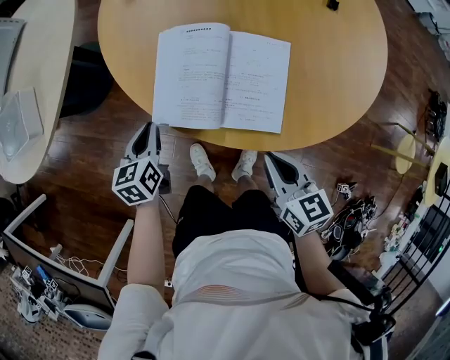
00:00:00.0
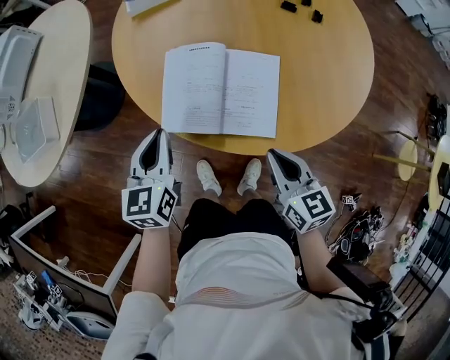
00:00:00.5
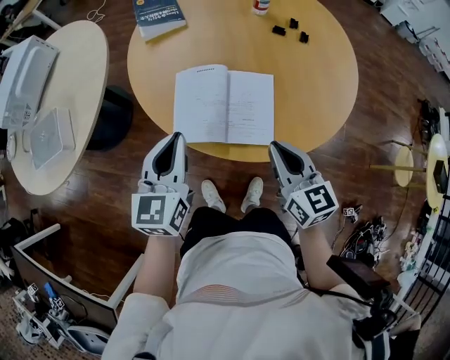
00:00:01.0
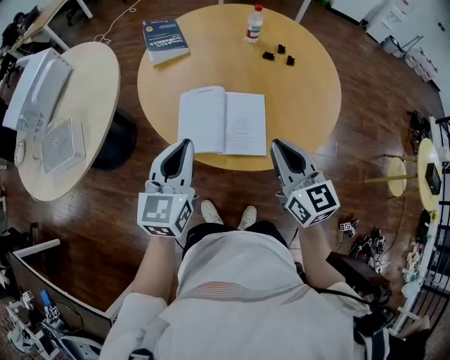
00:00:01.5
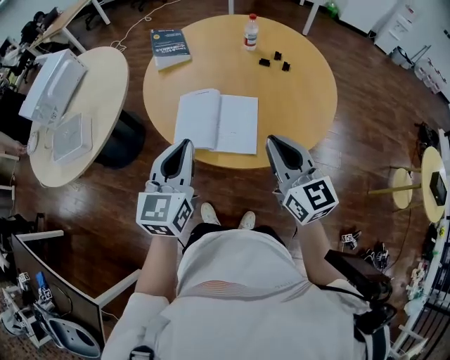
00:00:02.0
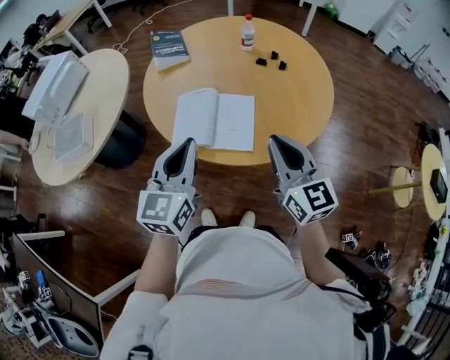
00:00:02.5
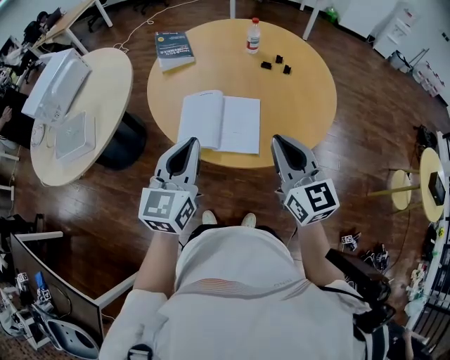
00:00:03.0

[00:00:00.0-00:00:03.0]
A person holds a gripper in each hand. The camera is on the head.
00:00:00.0 to 00:00:01.5: Both grippers move upward, approximately 25 cm. The right gripper turns by roughly 30 degrees. Meanwhile the left gripper turns by approximately 40 degrees.
00:00:01.5 to 00:00:03.0: The right gripper goes some 10 cm upward and backward, while the left gripper goes some 10 cm backward and to the right.

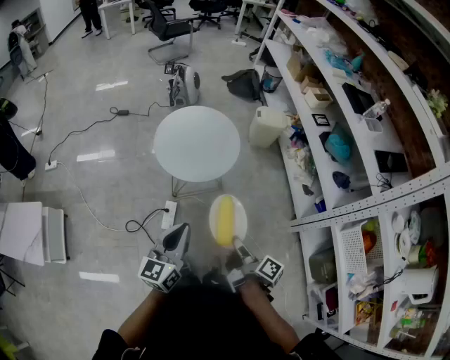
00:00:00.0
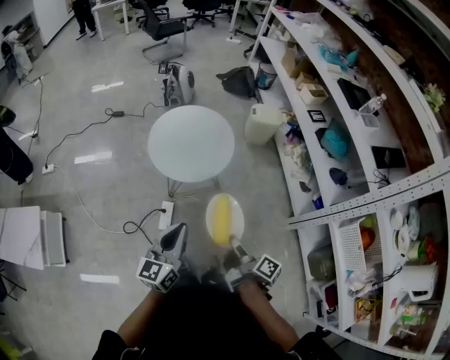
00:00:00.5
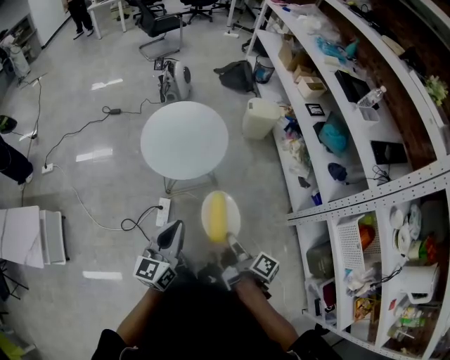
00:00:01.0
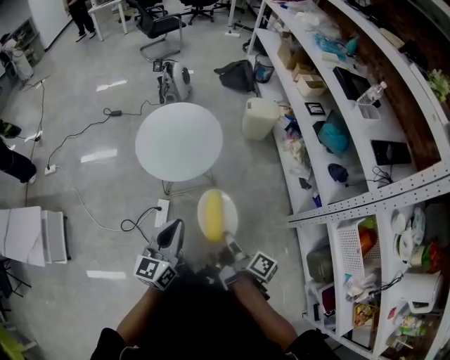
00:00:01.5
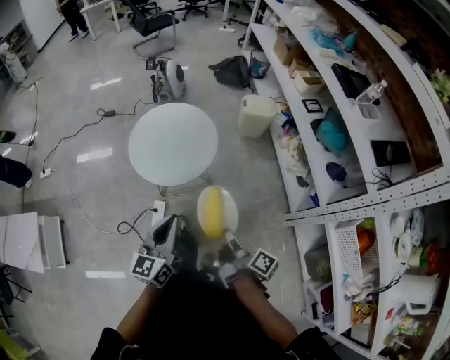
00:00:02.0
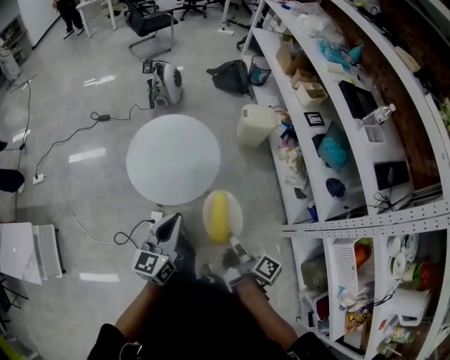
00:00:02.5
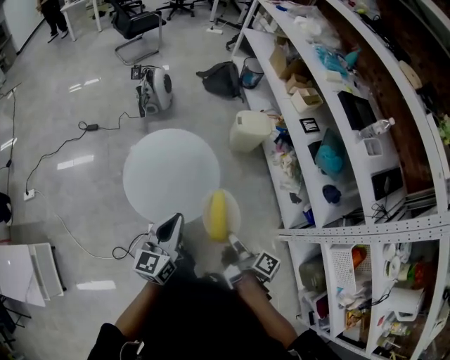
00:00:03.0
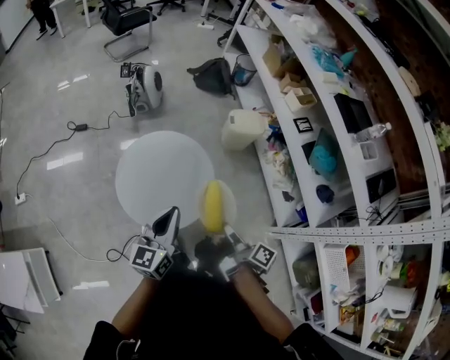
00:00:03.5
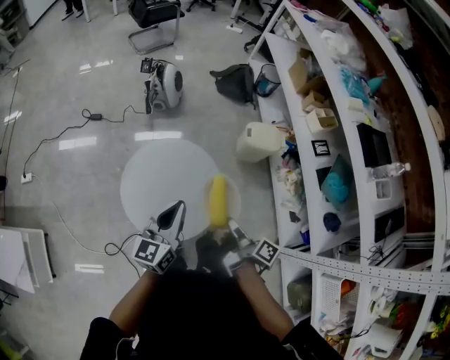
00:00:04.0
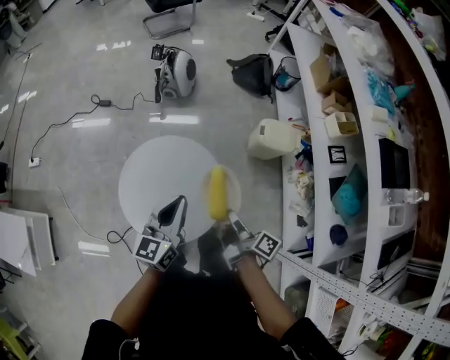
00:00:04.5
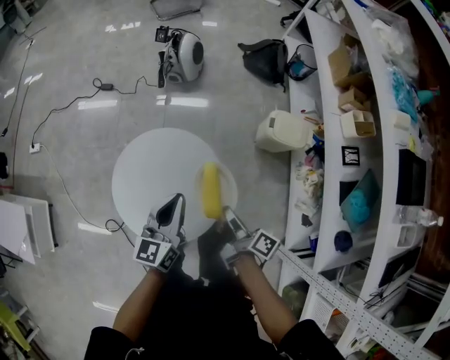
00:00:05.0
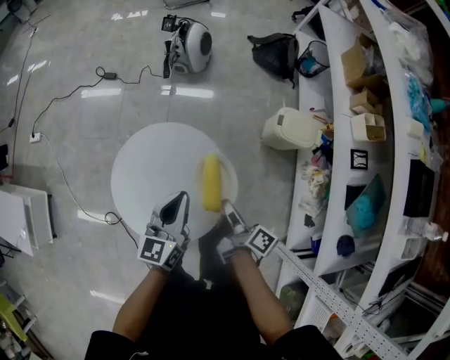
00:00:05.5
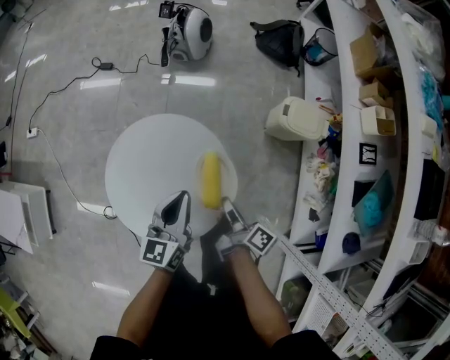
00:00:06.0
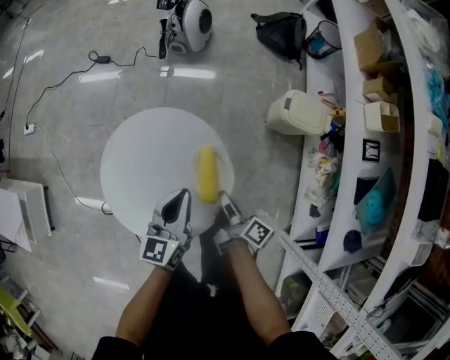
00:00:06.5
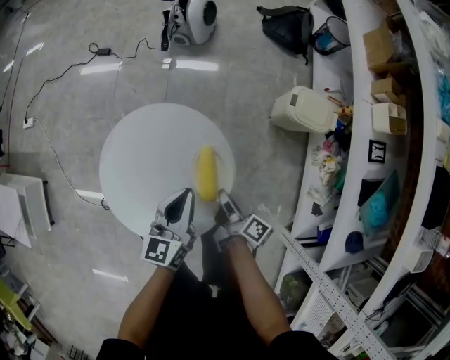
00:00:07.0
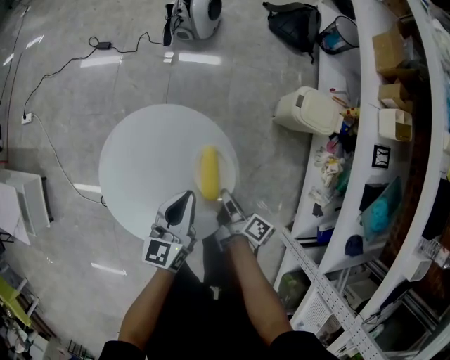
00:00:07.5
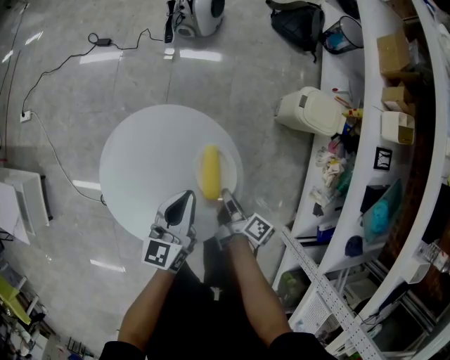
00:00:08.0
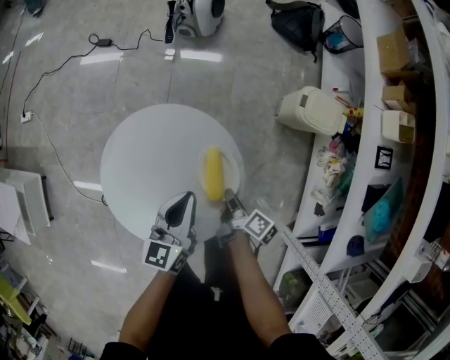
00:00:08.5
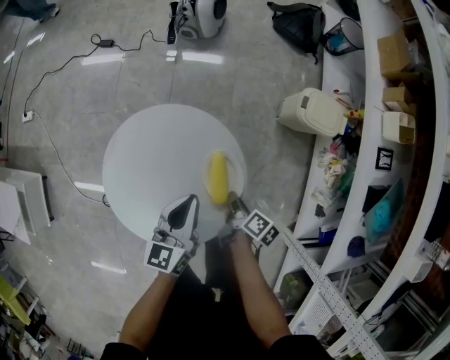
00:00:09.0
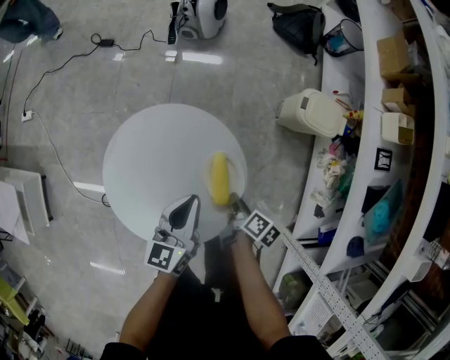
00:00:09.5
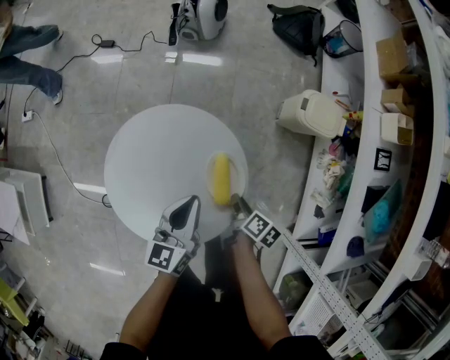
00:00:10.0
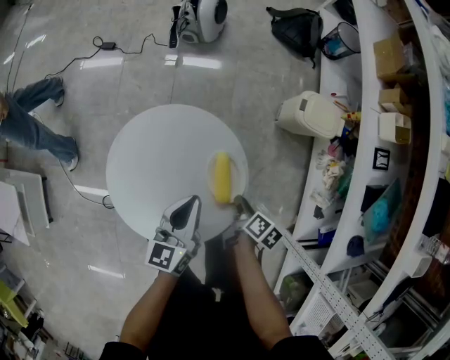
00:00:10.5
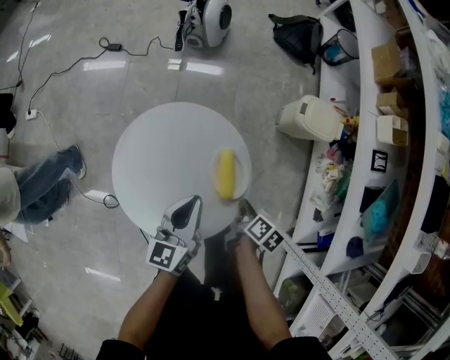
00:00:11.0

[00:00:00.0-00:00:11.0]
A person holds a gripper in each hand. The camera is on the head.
00:00:00.0 to 00:00:02.0: The left gripper ends up some 15 cm from where it was.
00:00:02.0 to 00:00:03.5: The left gripper shifts by approximately 25 cm.
00:00:03.5 to 00:00:05.5: The left gripper moves about 25 cm, and swivels about 20 degrees.
00:00:05.5 to 00:00:07.5: The left gripper is displaced downward by some 10 cm.

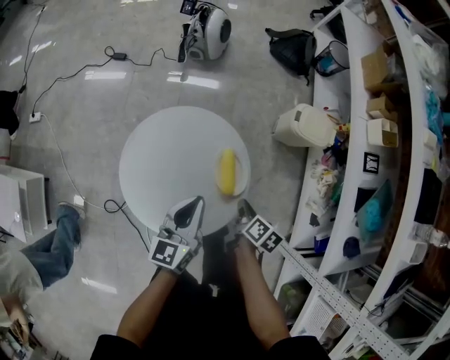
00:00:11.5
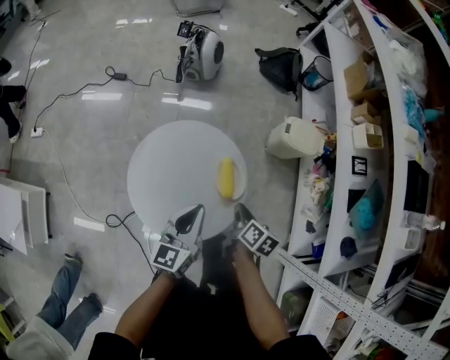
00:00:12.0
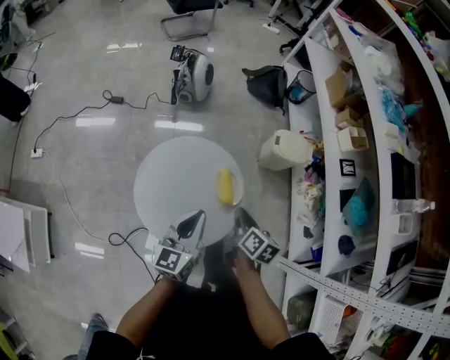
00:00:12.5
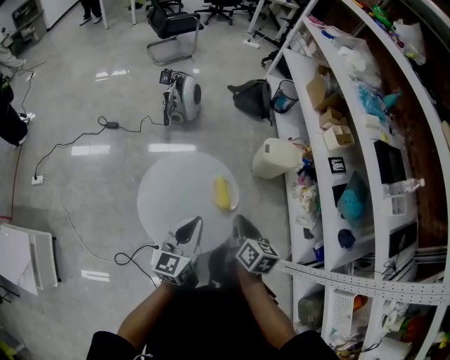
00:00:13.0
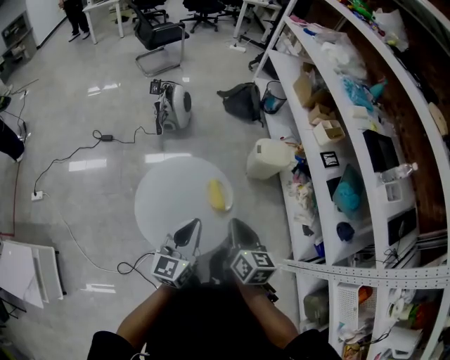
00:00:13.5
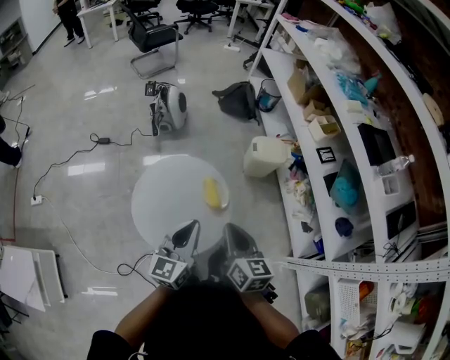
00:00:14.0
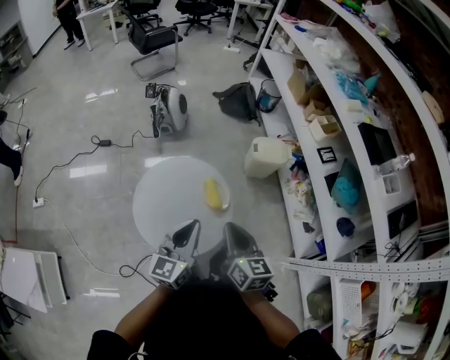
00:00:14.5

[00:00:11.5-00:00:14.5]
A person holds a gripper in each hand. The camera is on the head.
00:00:11.5 to 00:00:13.0: The left gripper travels upward by some 10 cm.
00:00:13.0 to 00:00:14.5: The left gripper changes place by some 5 cm.

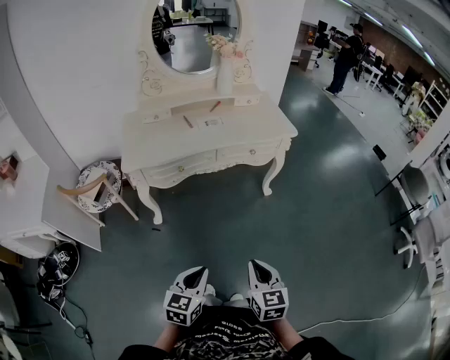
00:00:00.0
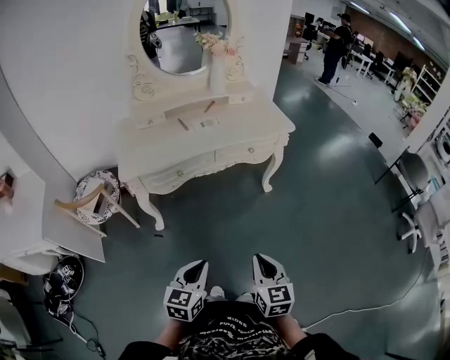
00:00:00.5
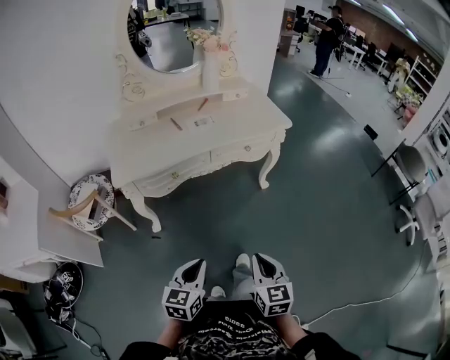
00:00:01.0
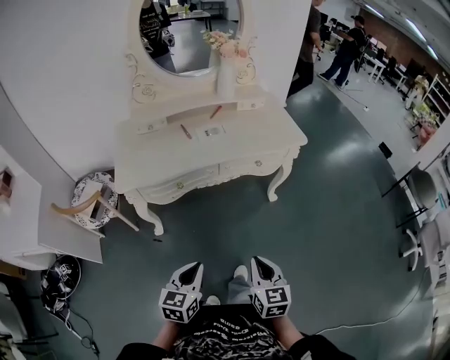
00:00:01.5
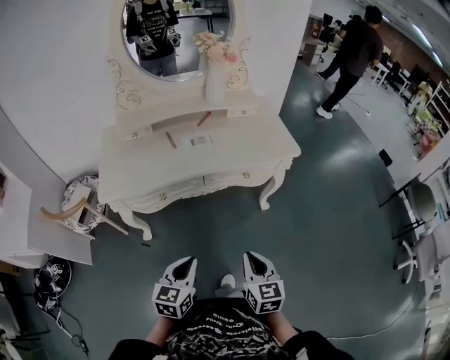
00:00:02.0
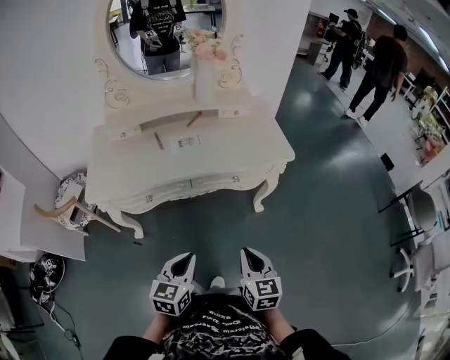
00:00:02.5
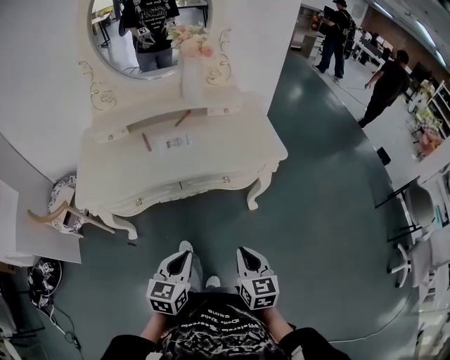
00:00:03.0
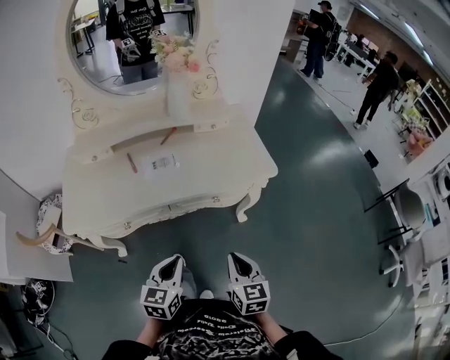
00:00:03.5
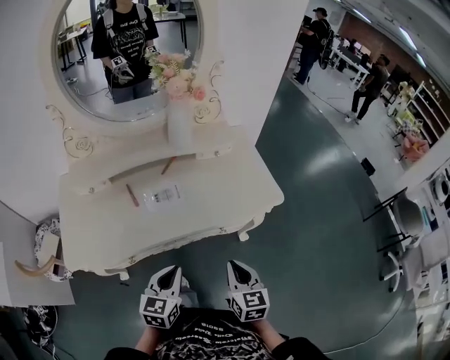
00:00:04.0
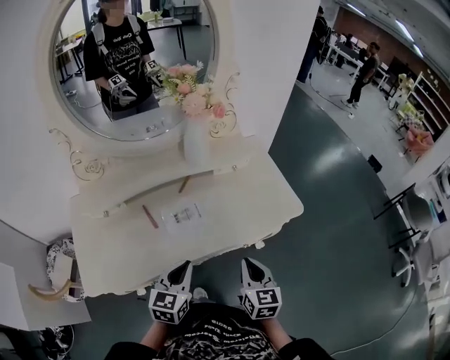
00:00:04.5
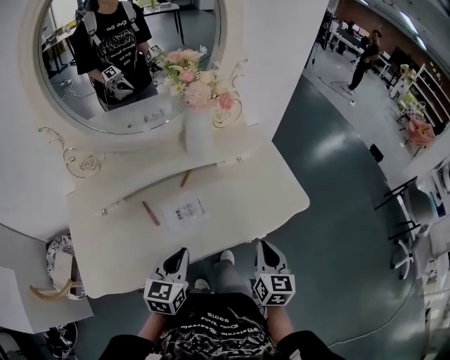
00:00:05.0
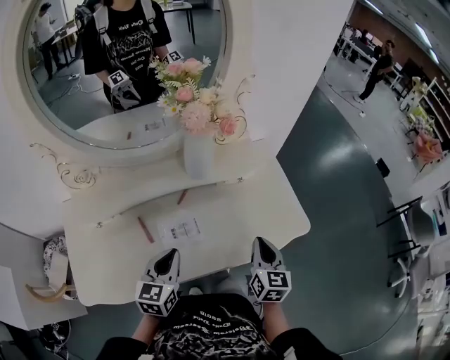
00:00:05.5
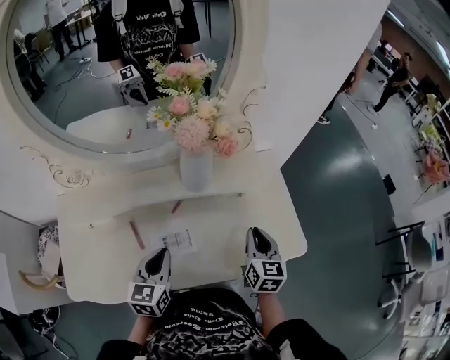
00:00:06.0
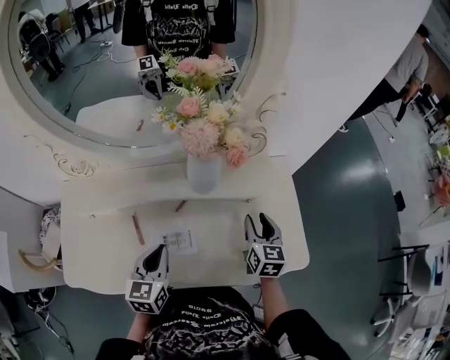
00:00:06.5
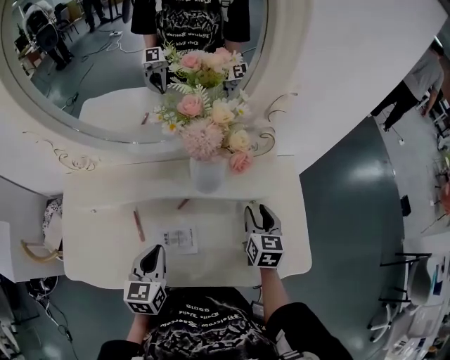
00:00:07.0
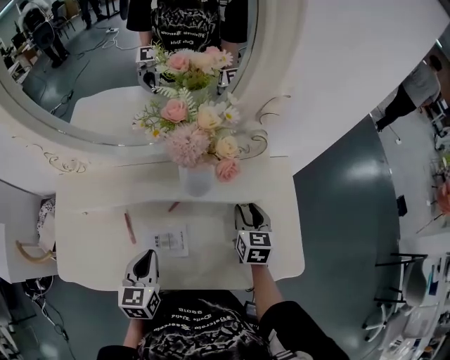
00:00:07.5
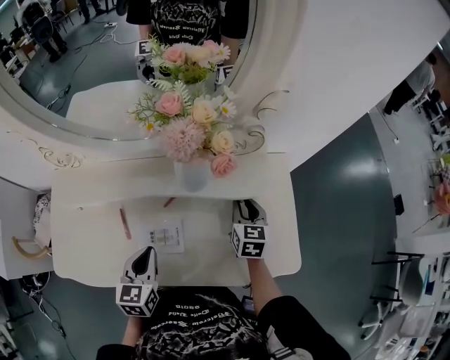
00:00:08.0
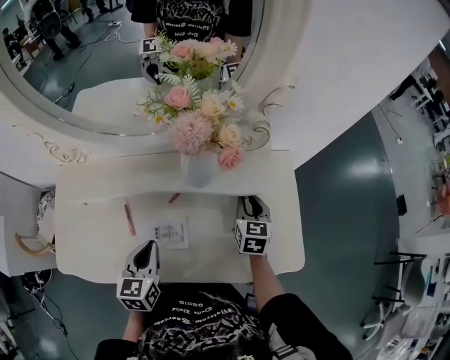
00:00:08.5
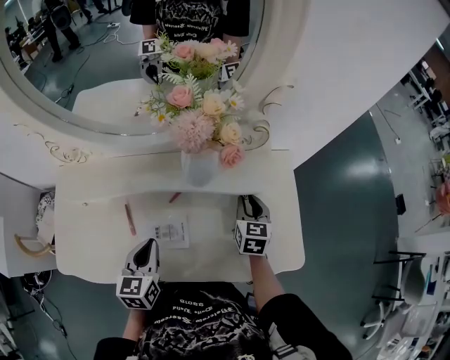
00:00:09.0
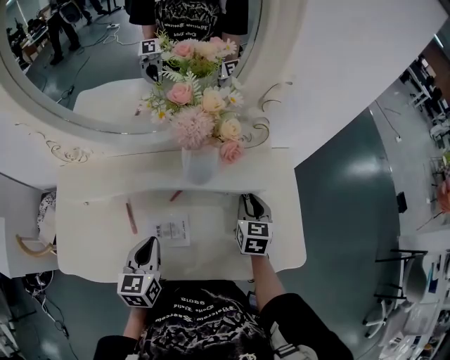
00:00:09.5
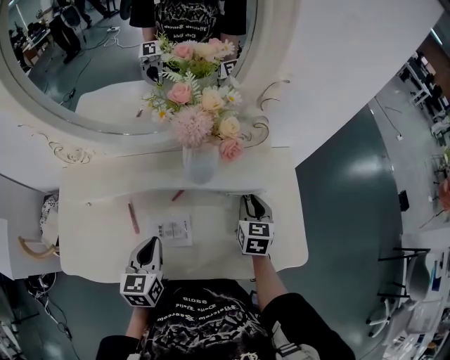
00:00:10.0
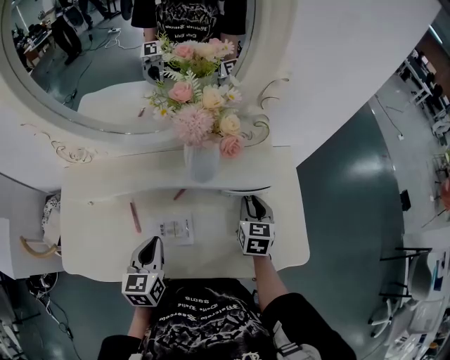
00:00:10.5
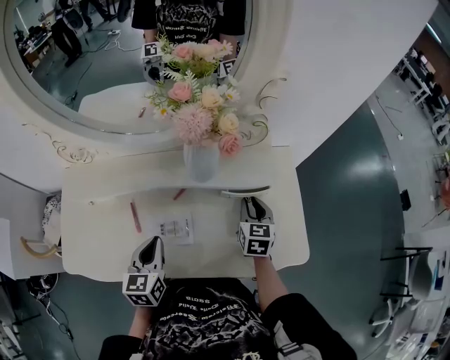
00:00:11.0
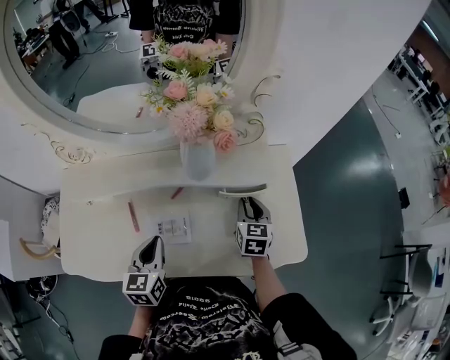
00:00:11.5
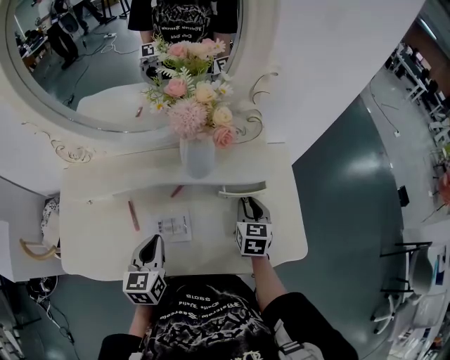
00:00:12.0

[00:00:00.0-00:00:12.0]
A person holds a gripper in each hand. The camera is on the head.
00:00:00.0 to 00:00:02.0: The two grippers go approximately 20 cm forward.
00:00:02.0 to 00:00:04.0: Both grippers travel together forward, approximately 25 cm.
00:00:04.0 to 00:00:06.0: The right gripper travels forward by about 30 cm; the left gripper heads forward and to the left, covering some 25 cm.
00:00:06.0 to 00:00:08.0: The right gripper goes roughly 15 cm forward.
00:00:08.0 to 00:00:12.0: The grippers make only small movements.
